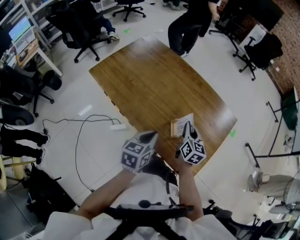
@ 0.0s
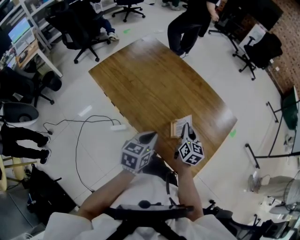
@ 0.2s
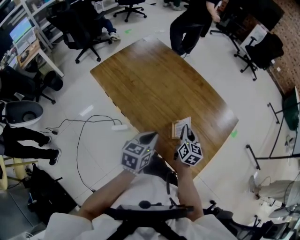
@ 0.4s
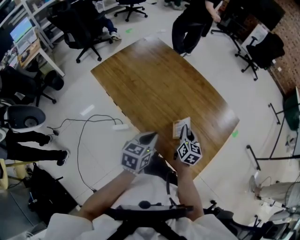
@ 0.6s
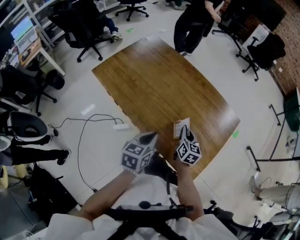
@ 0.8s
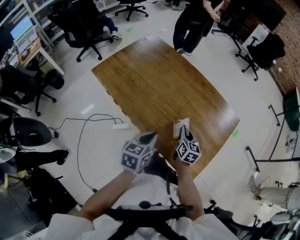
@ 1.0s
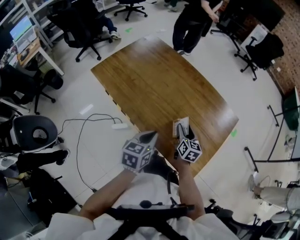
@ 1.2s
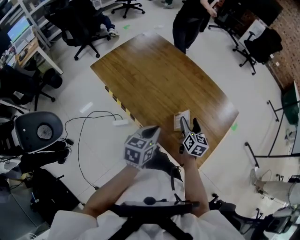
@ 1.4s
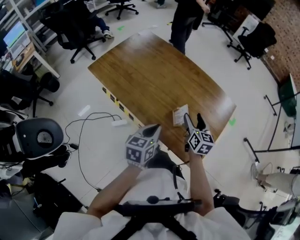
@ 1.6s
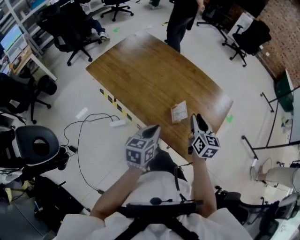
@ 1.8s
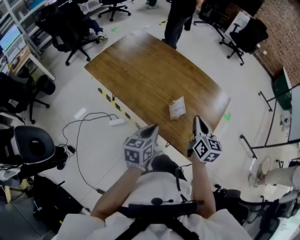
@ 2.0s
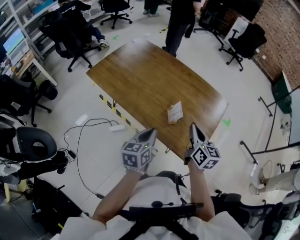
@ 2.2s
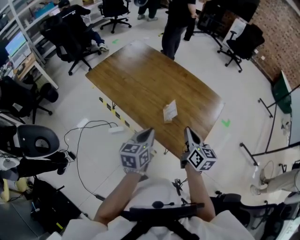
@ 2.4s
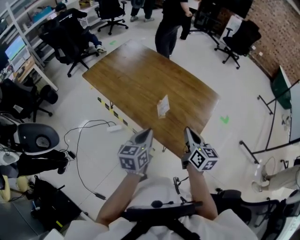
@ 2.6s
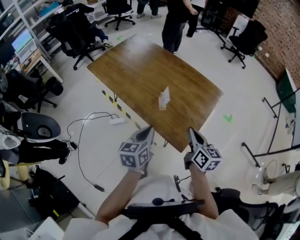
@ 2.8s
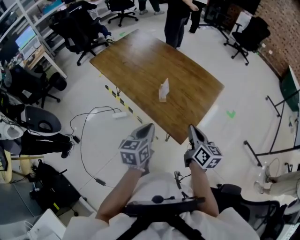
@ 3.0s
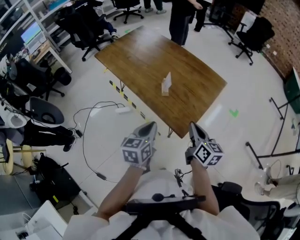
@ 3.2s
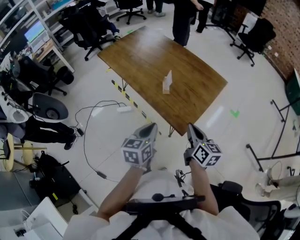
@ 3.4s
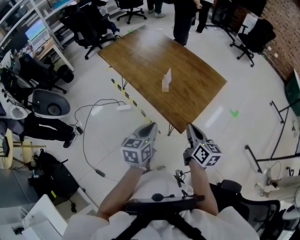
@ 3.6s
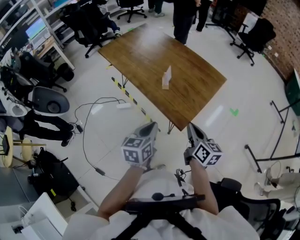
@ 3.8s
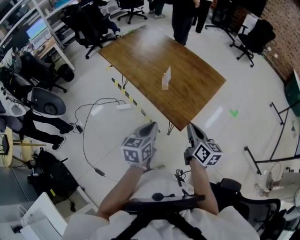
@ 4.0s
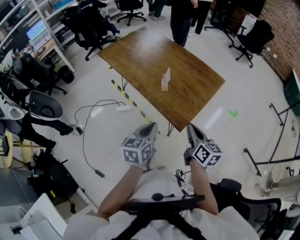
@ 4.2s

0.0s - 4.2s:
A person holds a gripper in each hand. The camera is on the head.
0.0s - 1.4s: The right gripper opens up.
1.4s - 2.8s: The left gripper is displaced backward and to the right by some 15 cm. The right gripper travels backward, upward and to the right by about 25 cm, and closes its fingers.
2.8s - 4.2s: Both grippers travel together backward, about 10 cm.

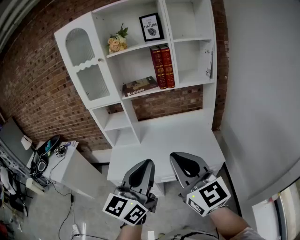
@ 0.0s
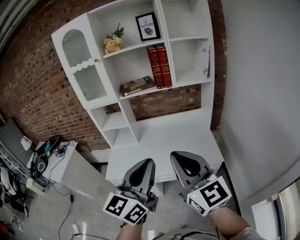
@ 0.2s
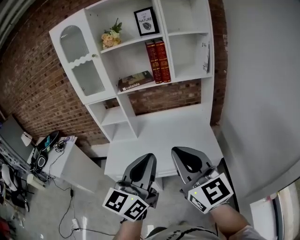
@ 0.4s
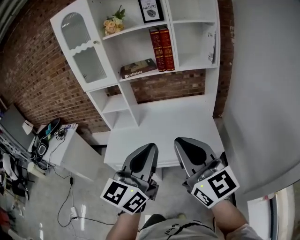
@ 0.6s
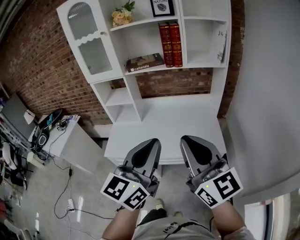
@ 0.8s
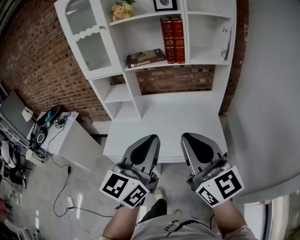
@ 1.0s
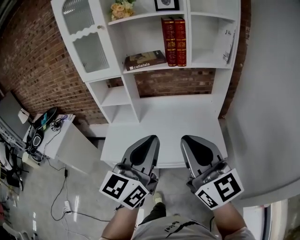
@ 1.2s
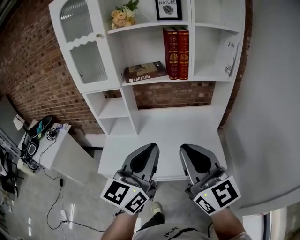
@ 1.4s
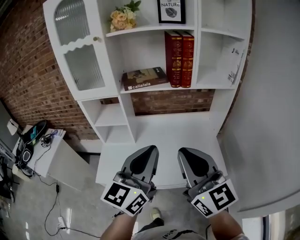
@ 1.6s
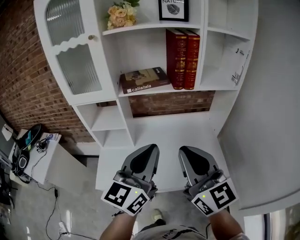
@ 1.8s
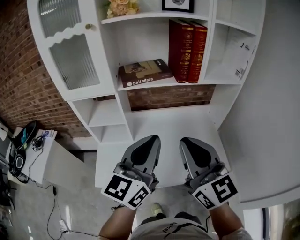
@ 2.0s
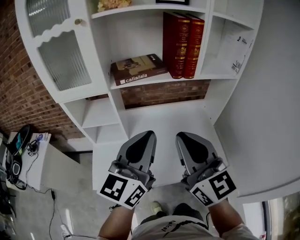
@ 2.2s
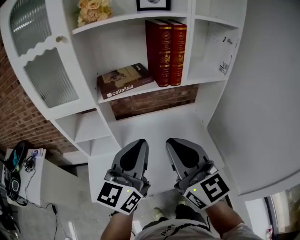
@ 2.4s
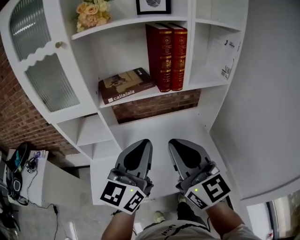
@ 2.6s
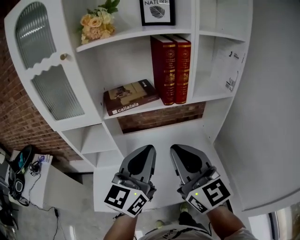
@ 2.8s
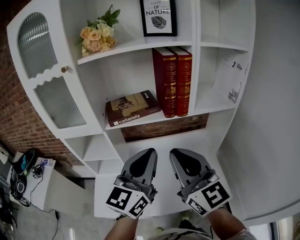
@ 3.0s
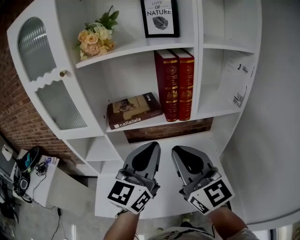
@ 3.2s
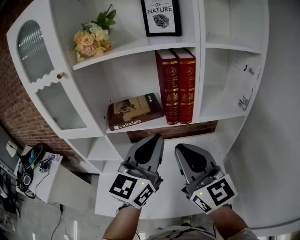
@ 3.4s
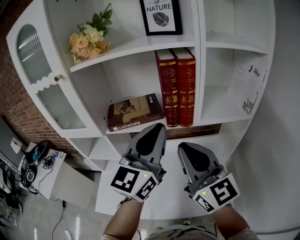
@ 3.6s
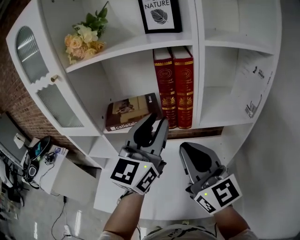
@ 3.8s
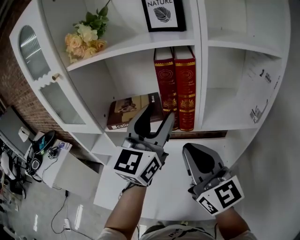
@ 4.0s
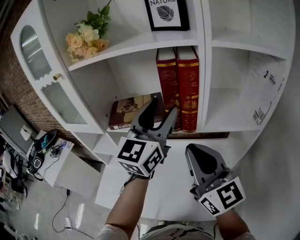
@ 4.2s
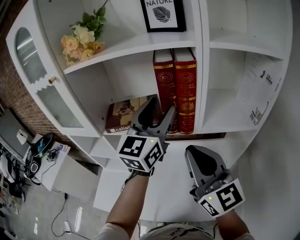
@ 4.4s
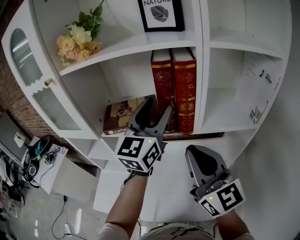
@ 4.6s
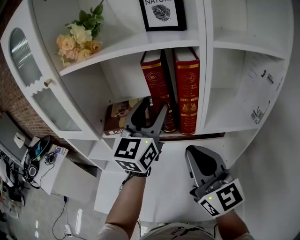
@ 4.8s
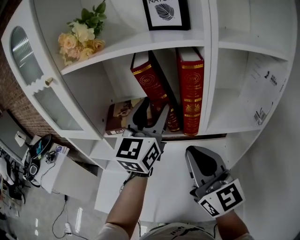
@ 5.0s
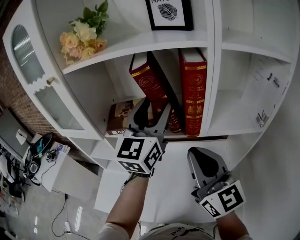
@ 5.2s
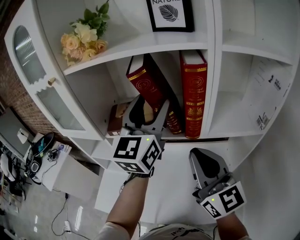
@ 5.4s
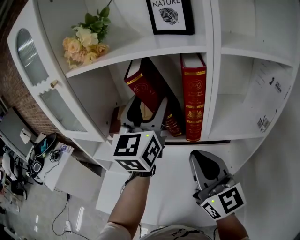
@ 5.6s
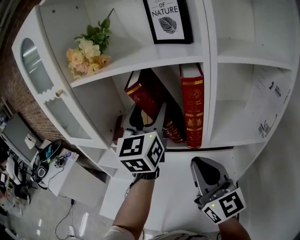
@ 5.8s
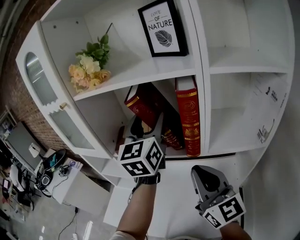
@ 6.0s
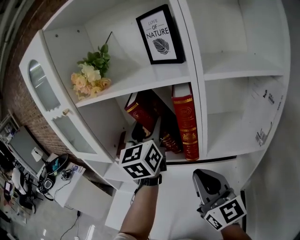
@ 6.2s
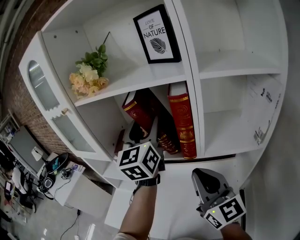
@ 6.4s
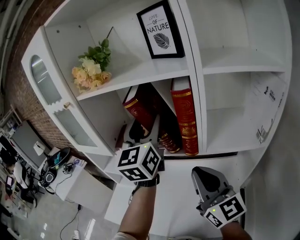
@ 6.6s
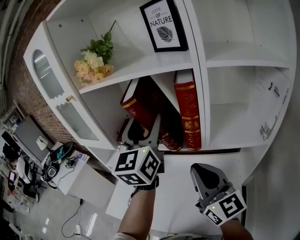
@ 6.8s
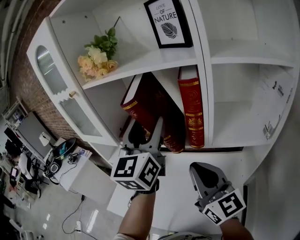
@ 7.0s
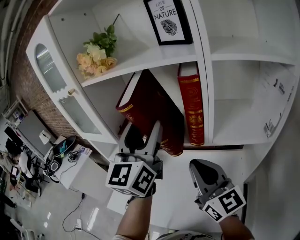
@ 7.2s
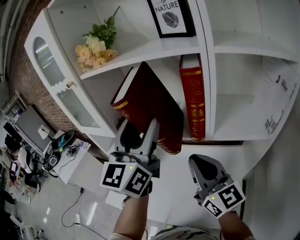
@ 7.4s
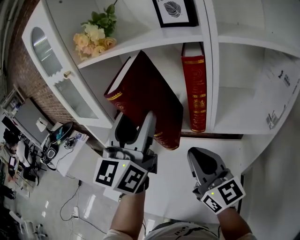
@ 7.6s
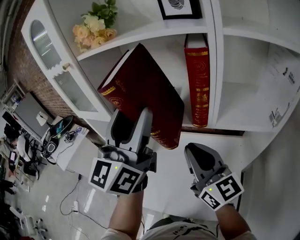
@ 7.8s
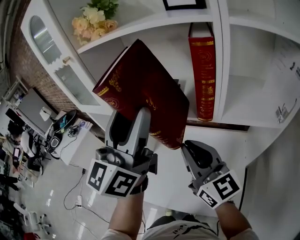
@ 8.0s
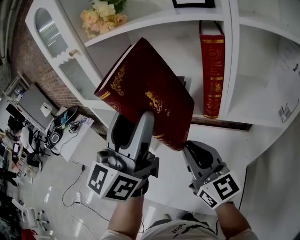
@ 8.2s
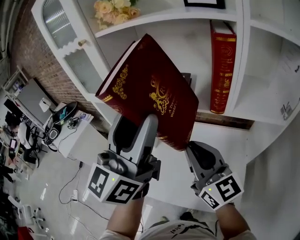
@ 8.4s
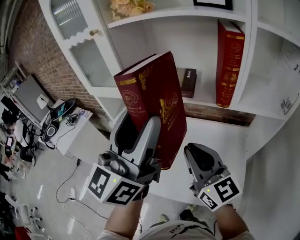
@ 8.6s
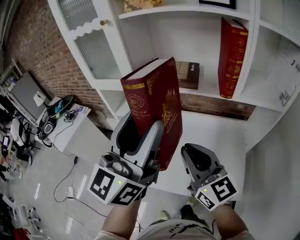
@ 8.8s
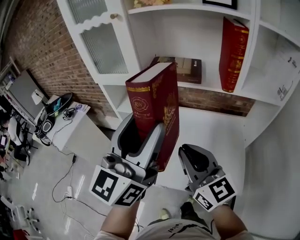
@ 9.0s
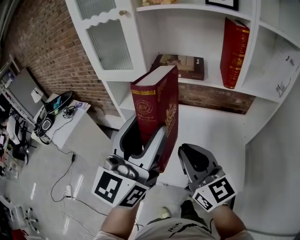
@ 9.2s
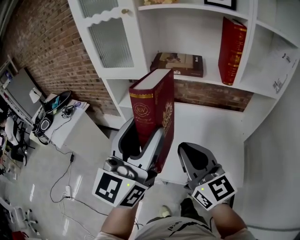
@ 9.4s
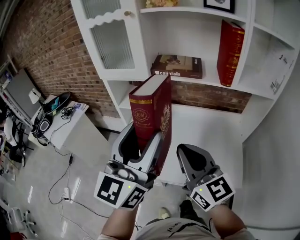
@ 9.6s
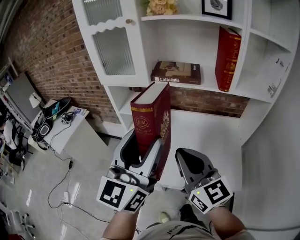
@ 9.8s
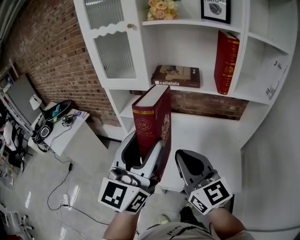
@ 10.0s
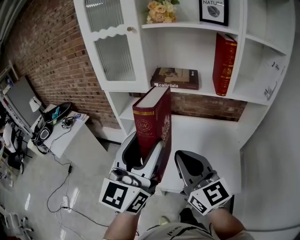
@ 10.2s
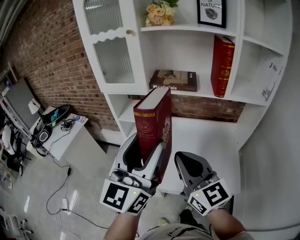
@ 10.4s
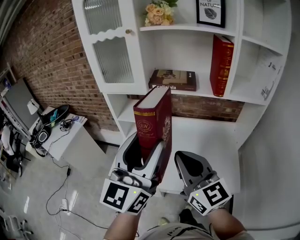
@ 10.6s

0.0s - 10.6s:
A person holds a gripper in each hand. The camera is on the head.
0.0s - 1.6s: The two grippers go some 20 cm forward.
1.6s - 3.0s: Both grippers move forward, some 15 cm.
3.0s - 4.6s: The right gripper goes about 15 cm forward and to the right; the left gripper heads forward and to the right, covering some 25 cm, and opens up.
4.6s - 6.0s: The left gripper ends up some 5 cm from where it was.
6.0s - 7.6s: The left gripper shifts roughly 10 cm backward.
7.6s - 9.0s: The right gripper heads to the left and backward, covering approximately 20 cm. The left gripper shifts about 20 cm to the left, backward and downward.
9.0s - 10.6s: Both grippers travel together backward, approximately 5 cm.

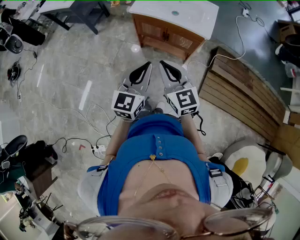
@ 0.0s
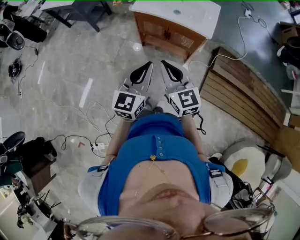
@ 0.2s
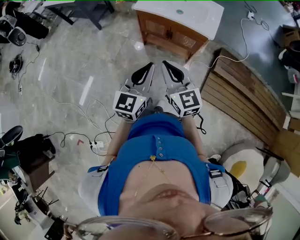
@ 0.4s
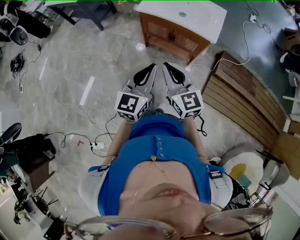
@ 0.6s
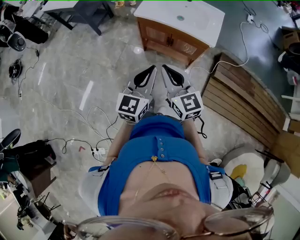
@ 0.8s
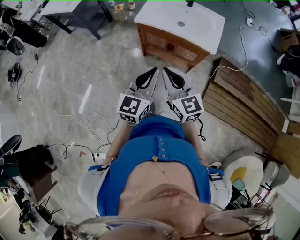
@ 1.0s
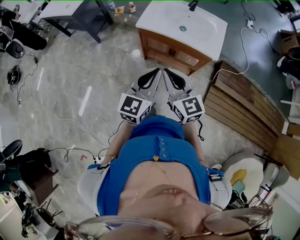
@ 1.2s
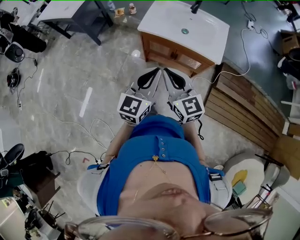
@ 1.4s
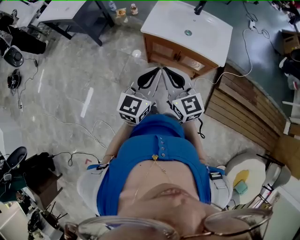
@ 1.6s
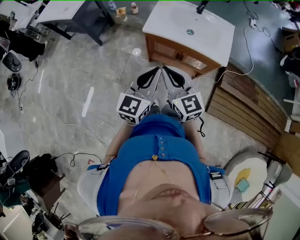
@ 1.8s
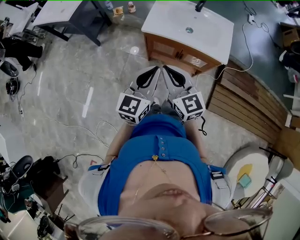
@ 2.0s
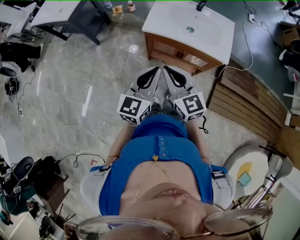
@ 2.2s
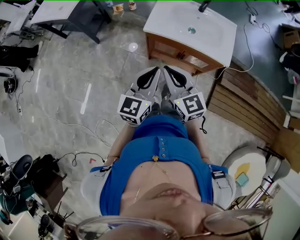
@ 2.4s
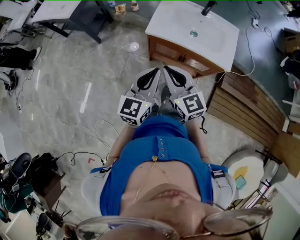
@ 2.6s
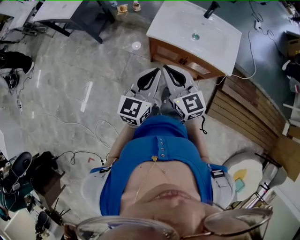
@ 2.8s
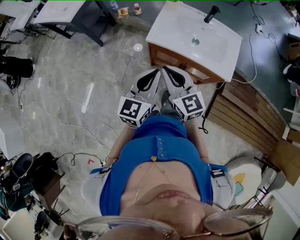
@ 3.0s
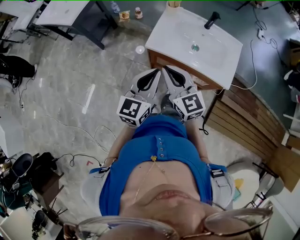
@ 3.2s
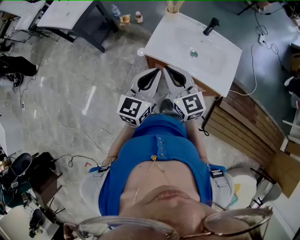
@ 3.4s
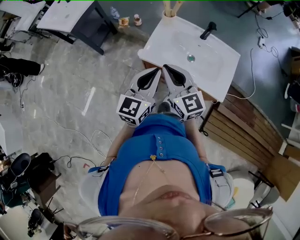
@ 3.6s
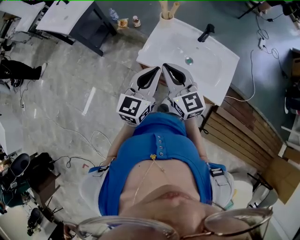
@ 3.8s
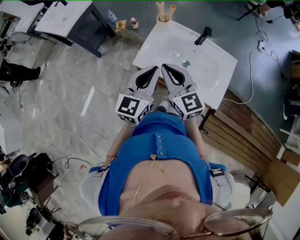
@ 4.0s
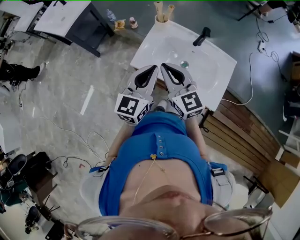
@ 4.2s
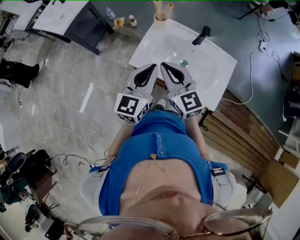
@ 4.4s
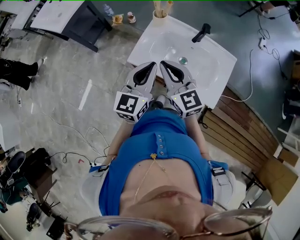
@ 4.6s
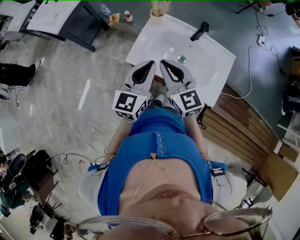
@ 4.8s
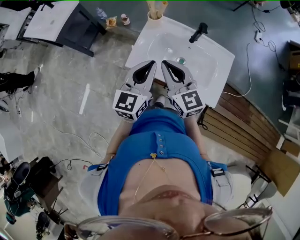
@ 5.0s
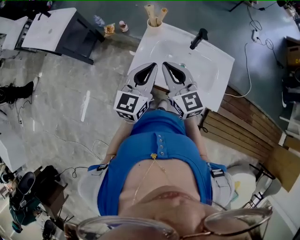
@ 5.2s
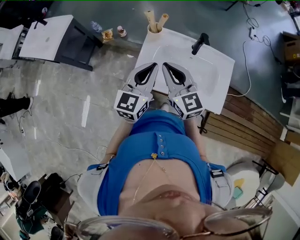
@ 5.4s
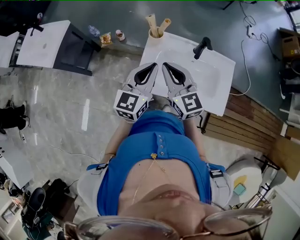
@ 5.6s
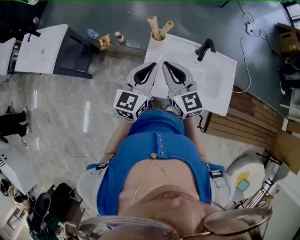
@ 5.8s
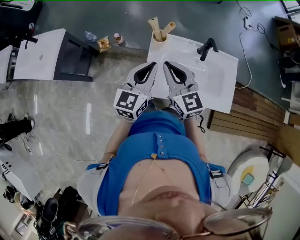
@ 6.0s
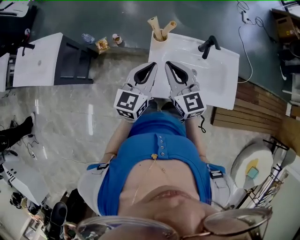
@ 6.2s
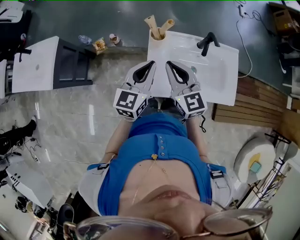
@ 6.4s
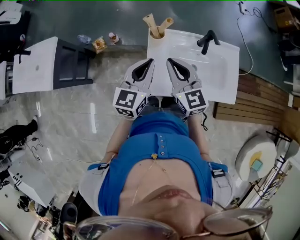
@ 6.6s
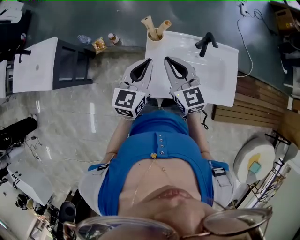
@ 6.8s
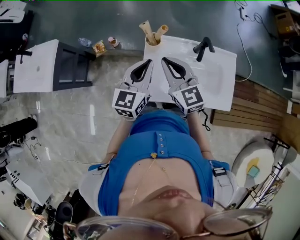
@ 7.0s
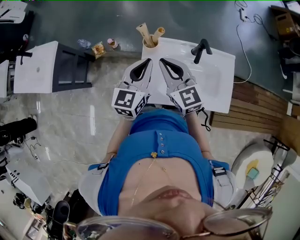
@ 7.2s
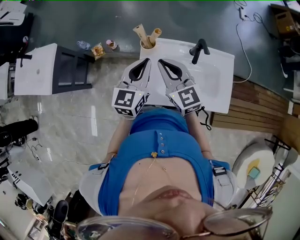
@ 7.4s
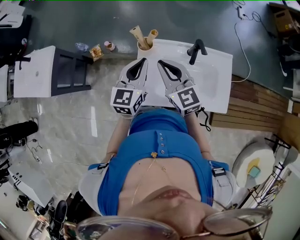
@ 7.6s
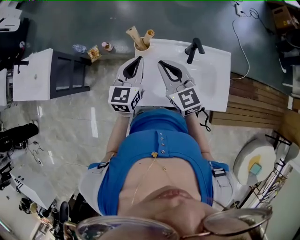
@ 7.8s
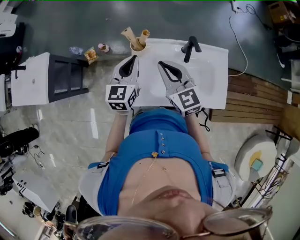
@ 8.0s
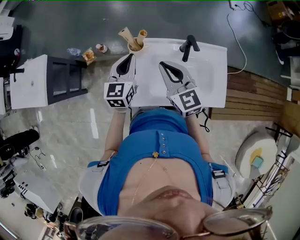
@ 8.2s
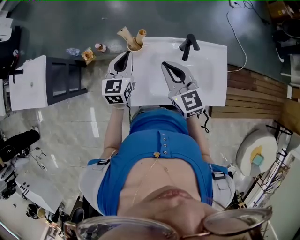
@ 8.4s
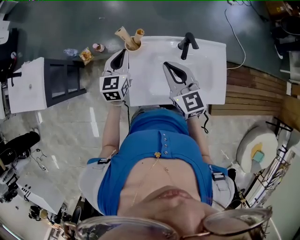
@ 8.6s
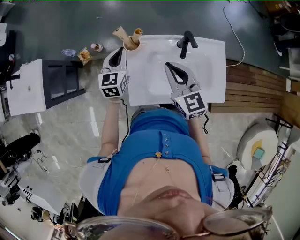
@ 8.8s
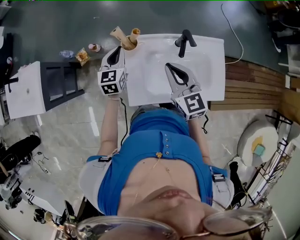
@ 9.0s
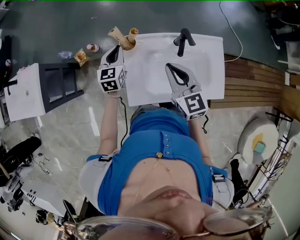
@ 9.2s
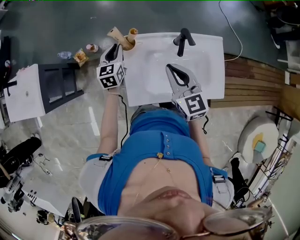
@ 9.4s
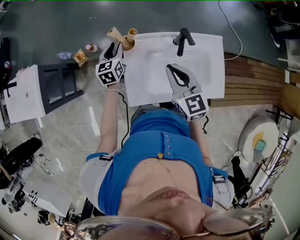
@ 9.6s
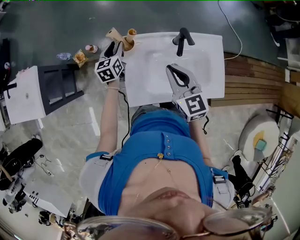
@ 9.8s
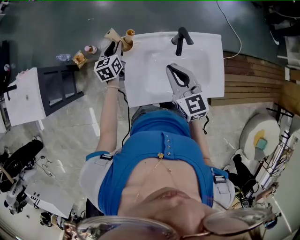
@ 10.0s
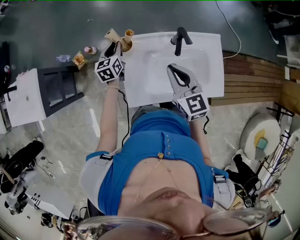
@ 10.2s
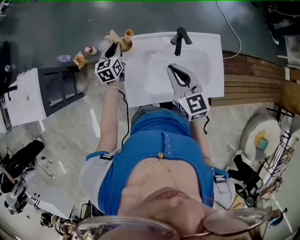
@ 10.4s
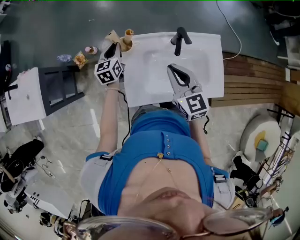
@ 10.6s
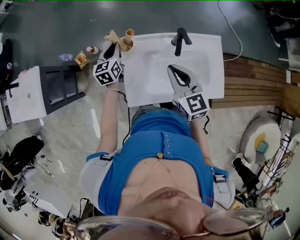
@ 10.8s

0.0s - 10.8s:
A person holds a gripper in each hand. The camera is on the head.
0.0s - 1.6s: The right gripper shifts roughly 20 cm forward and to the left. Meanwhile the left gripper heads forward, covering approximately 15 cm.
1.6s - 3.0s: The grippers both shift forward by roughly 10 cm.
3.0s - 4.6s: The grippers both shift forward and to the right by some 20 cm.
4.6s - 6.2s: Both grippers travel together forward and to the left, some 20 cm. The right gripper swivels roughly 30 degrees, while the left gripper swivels roughly 20 degrees.
6.2s - 7.8s: The left gripper shifts approximately 10 cm forward, while the right gripper goes approximately 10 cm to the right and forward.
7.8s - 9.2s: The right gripper goes roughly 5 cm to the right. Meanwhile the left gripper heads downward and forward, covering about 15 cm.
9.2s - 10.8s: The left gripper opens and closes again.
